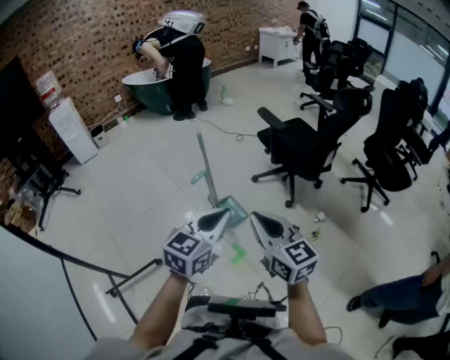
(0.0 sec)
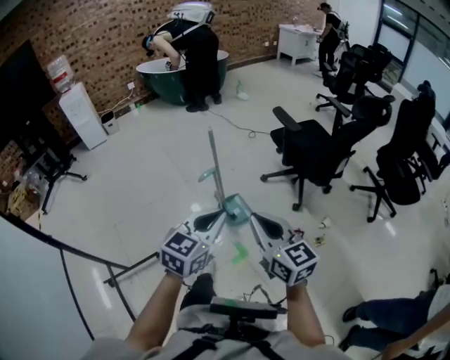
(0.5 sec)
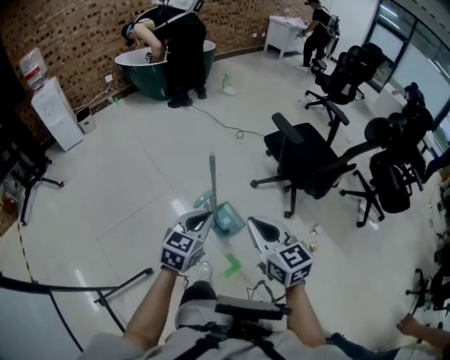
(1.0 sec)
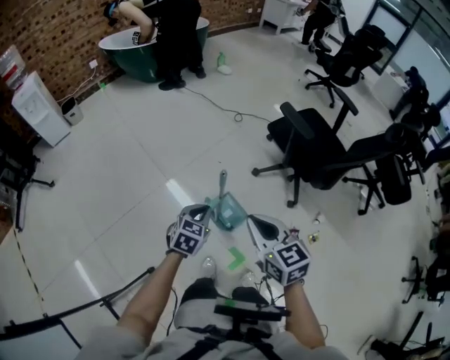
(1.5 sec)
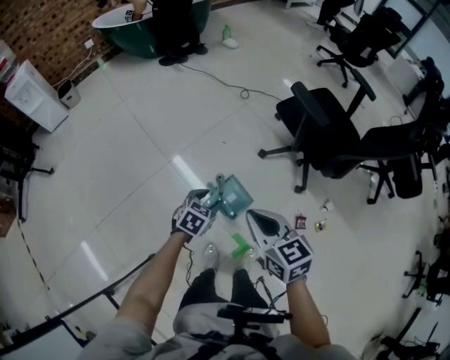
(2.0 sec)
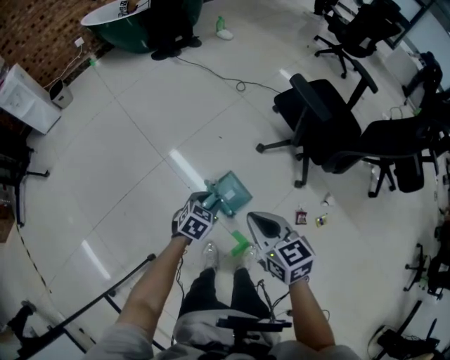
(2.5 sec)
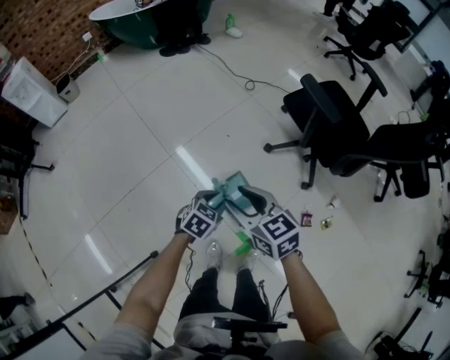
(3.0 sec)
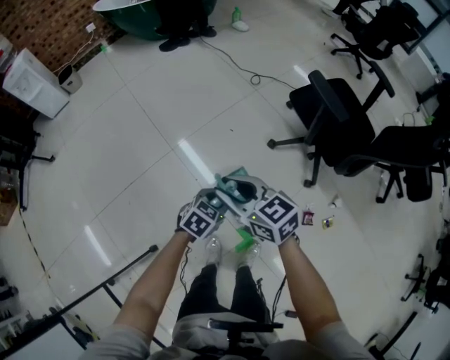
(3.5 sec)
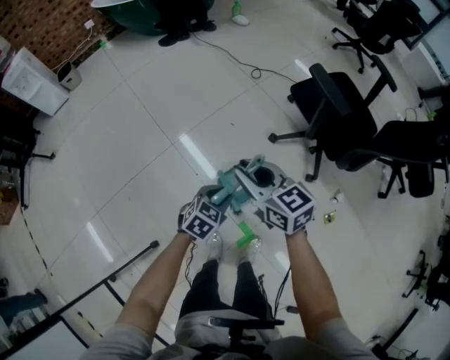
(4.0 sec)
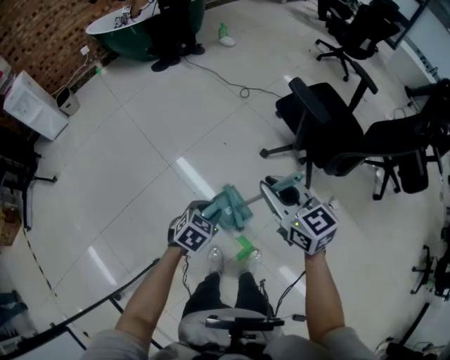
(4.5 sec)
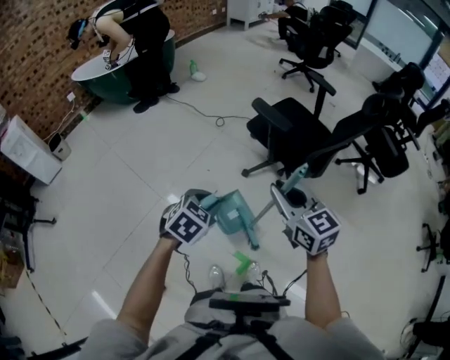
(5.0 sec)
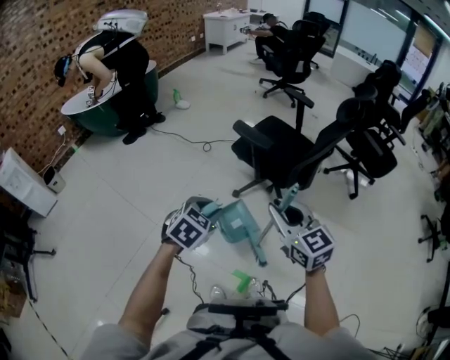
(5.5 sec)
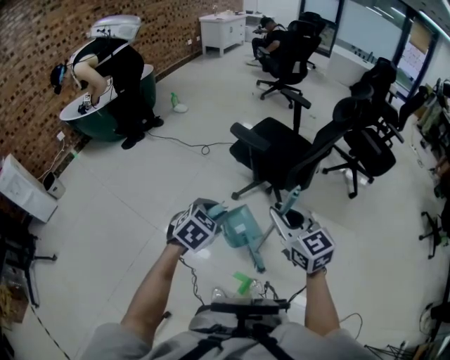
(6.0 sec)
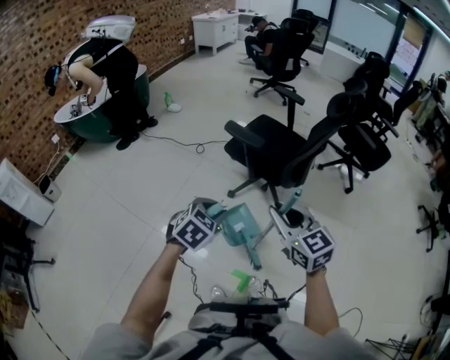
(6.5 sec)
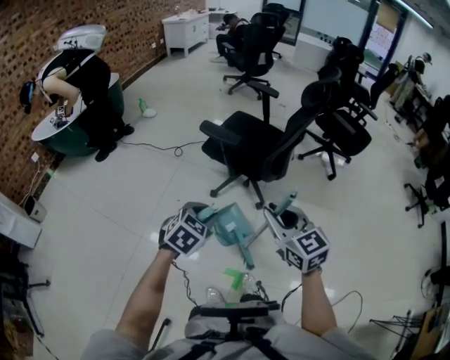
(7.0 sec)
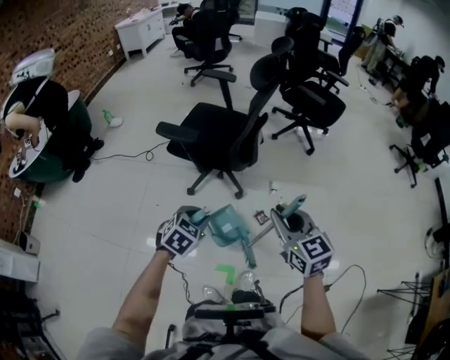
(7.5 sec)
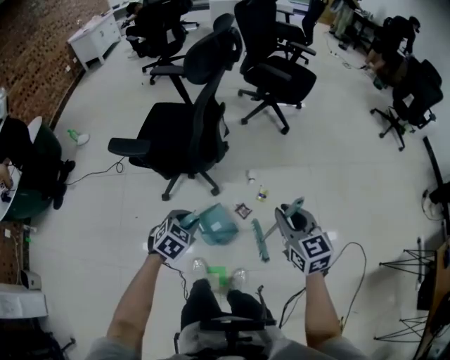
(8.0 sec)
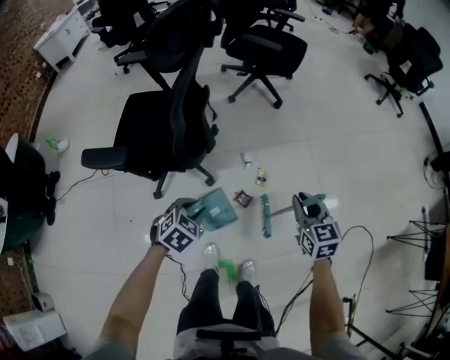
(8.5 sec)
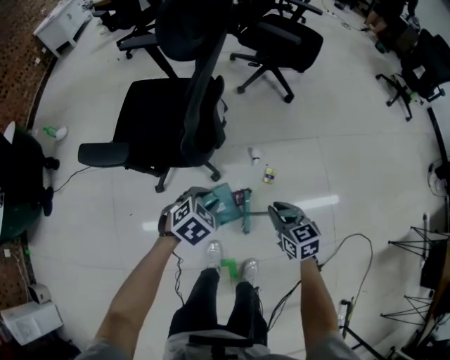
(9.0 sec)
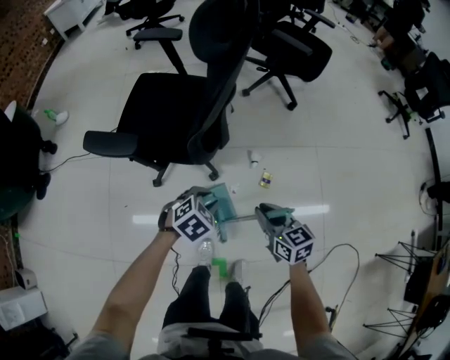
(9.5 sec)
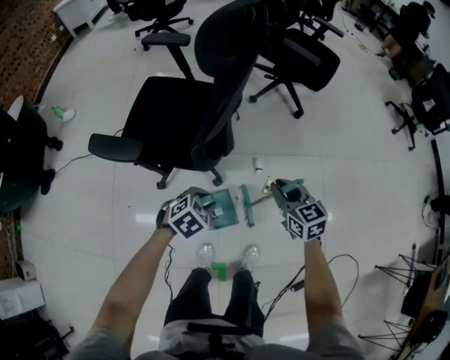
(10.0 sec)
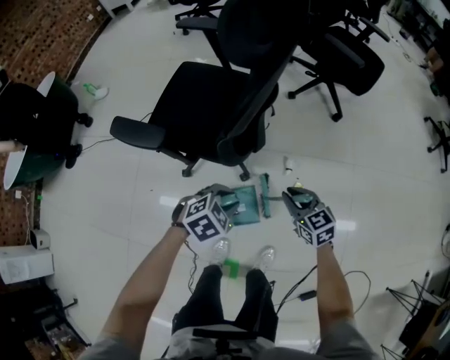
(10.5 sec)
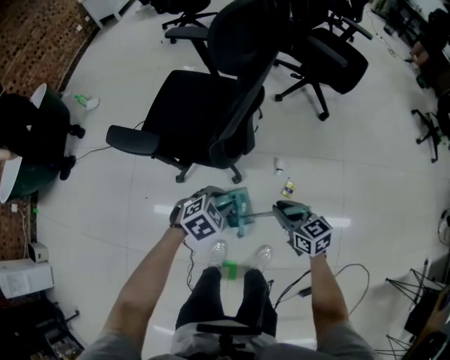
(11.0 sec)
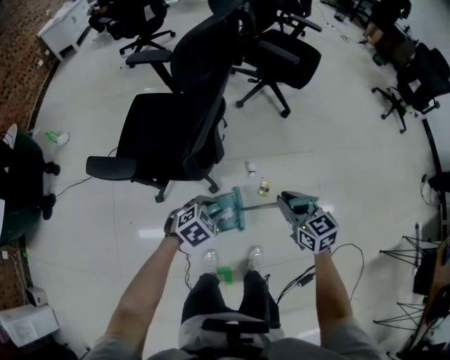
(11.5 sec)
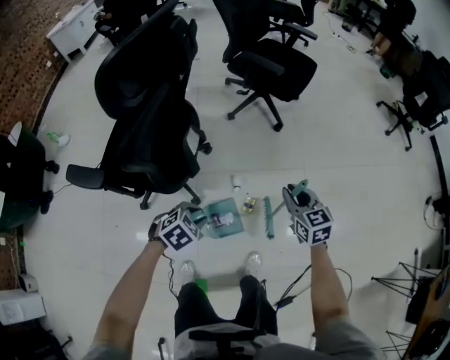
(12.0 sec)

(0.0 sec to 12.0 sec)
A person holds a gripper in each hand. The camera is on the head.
0.0 sec - 2.0 sec: Both grippers travel together forward and downward, approximately 40 cm. The right gripper rotates some 20 degrees. The left gripper angles its fingers downward, by roughly 40 degrees, and opens its fingers.
2.0 sec - 4.0 sec: The right gripper heads forward, covering some 10 cm, and opens its fingers.
4.0 sec - 6.0 sec: The right gripper is displaced to the right and upward by roughly 30 cm, and rotates about 40 degrees; the left gripper travels upward and to the right by some 25 cm, and swivels roughly 30 degrees.
6.0 sec - 8.0 sec: The right gripper ends up roughly 35 cm from where it was, and swivels roughly 40 degrees. Meanwhile the left gripper moves some 30 cm, and changes its angle by some 30 degrees.
8.0 sec - 10.0 sec: The left gripper moves forward and downward, some 15 cm, while the right gripper shifts about 25 cm forward, downward and to the left.
10.0 sec - 12.0 sec: The left gripper goes about 15 cm to the right. The right gripper shifts approximately 20 cm to the right.

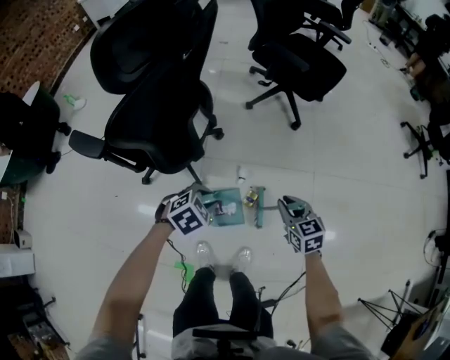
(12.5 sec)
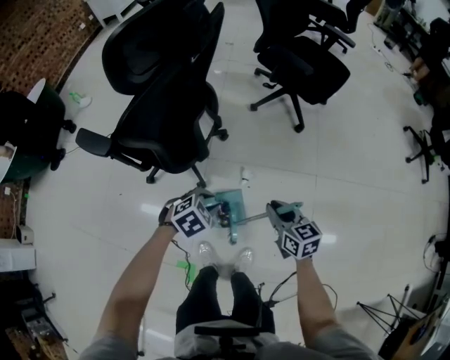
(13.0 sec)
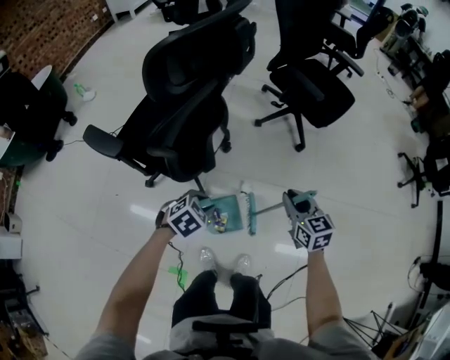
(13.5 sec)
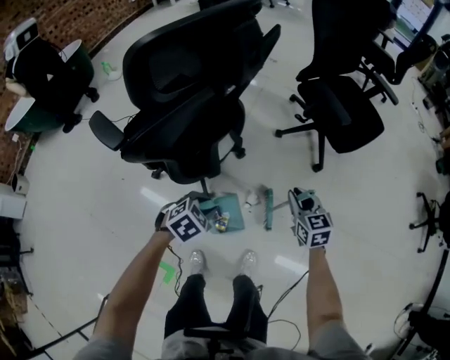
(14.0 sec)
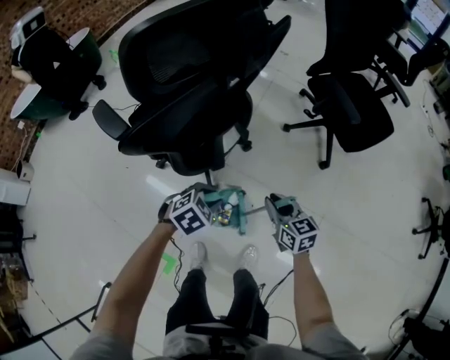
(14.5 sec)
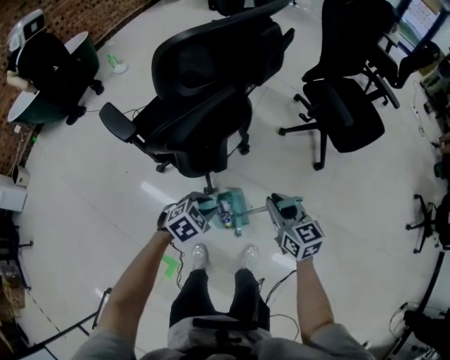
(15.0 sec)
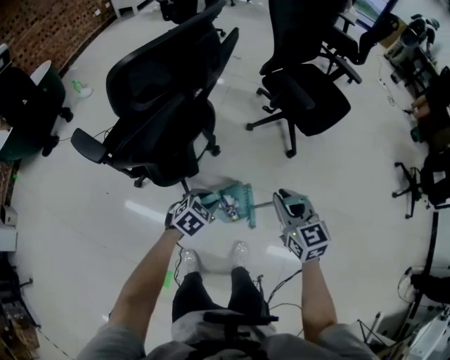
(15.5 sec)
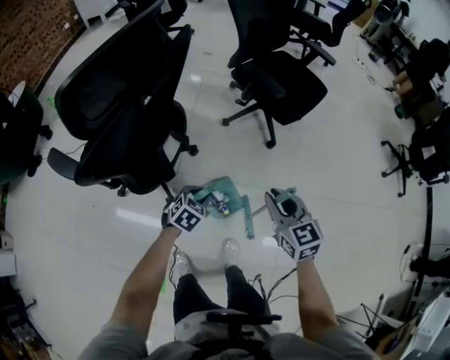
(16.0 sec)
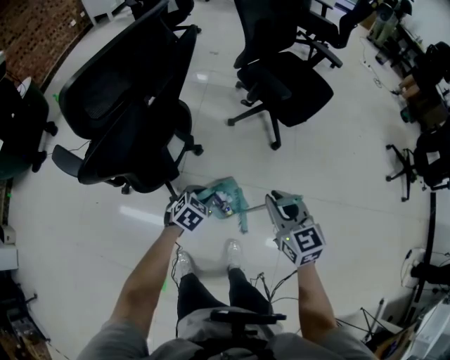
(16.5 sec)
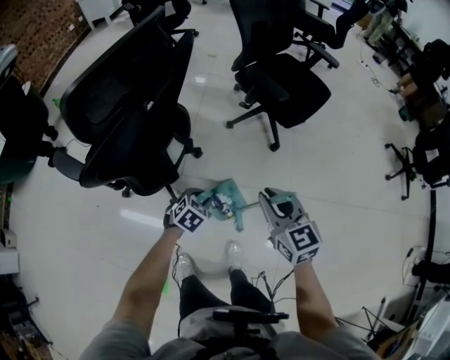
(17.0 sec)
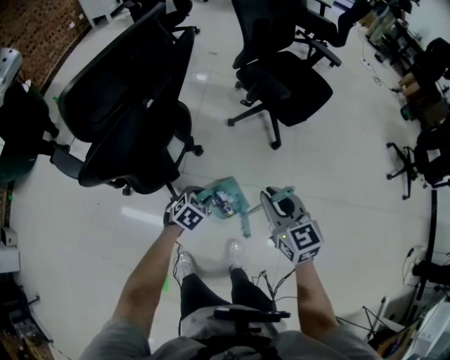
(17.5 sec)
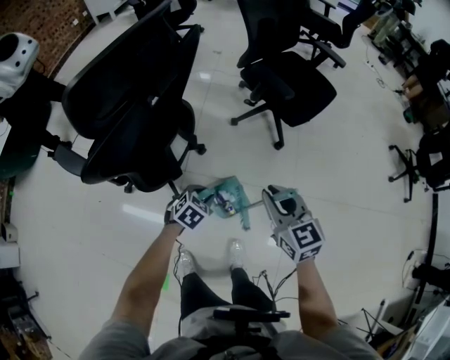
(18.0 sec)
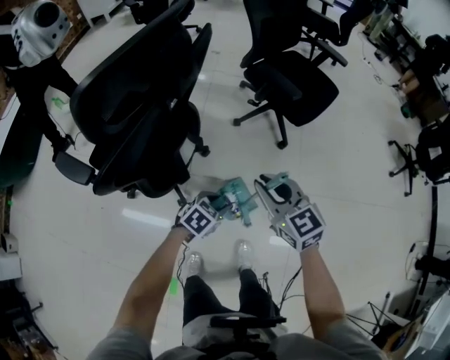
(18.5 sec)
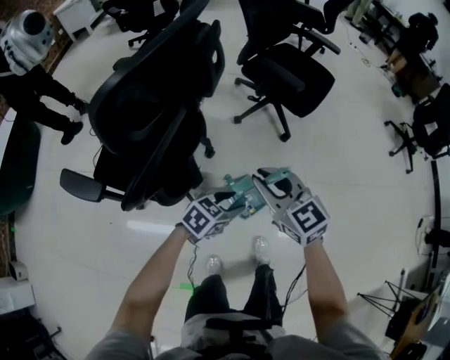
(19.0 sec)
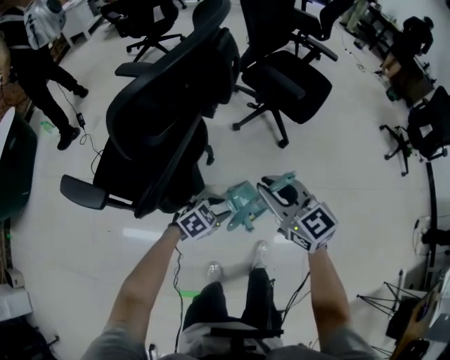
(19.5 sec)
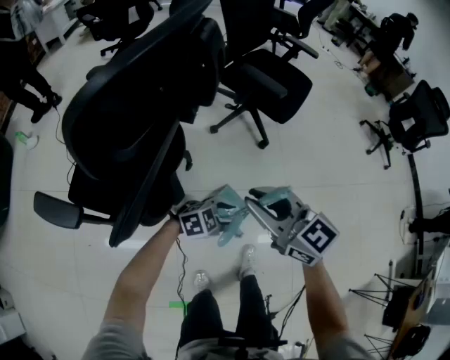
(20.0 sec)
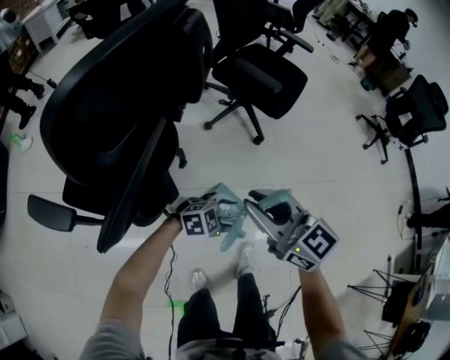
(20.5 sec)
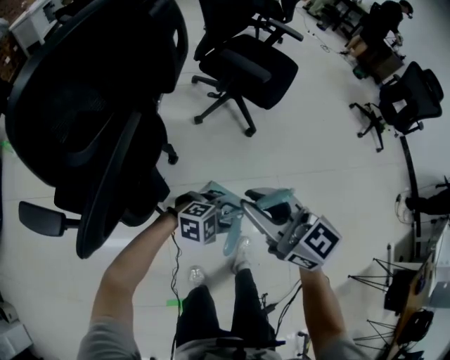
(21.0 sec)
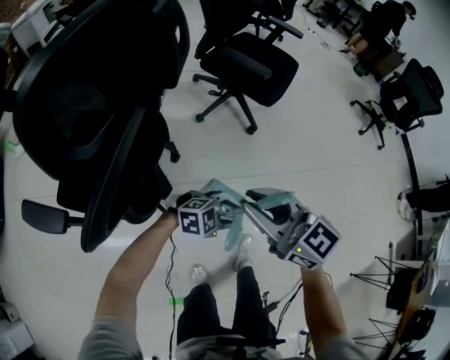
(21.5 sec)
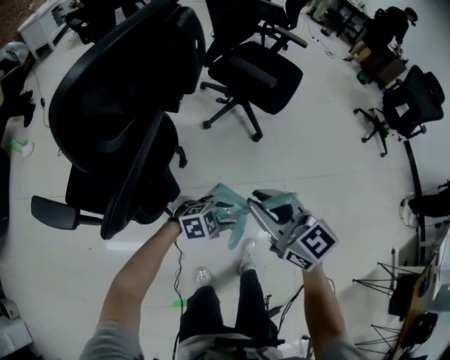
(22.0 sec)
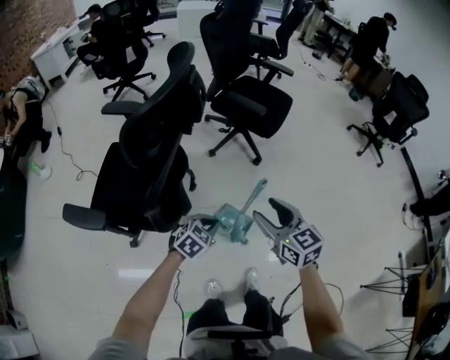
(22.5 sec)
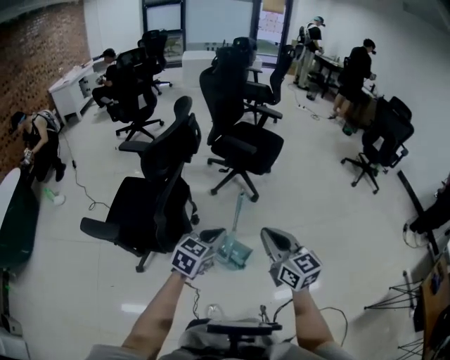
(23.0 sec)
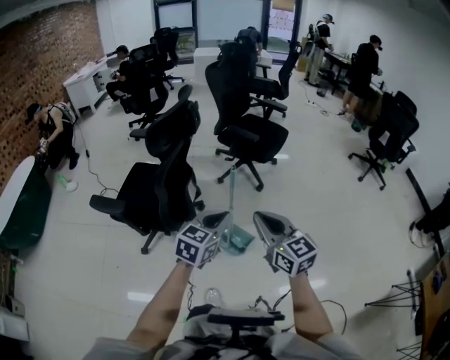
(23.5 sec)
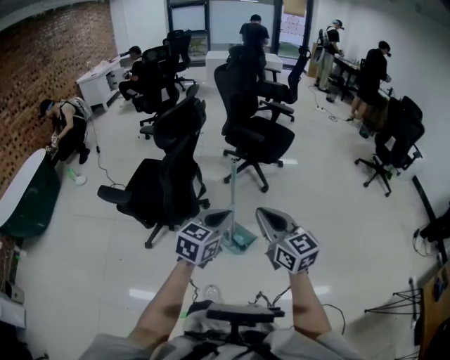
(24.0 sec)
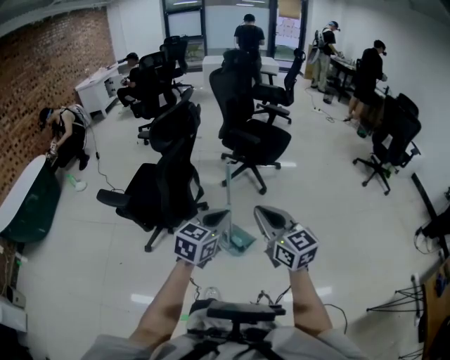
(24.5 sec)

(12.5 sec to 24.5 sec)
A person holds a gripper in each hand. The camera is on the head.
12.5 sec - 14.5 sec: The right gripper heads forward and to the left, covering roughly 15 cm, and turns by approximately 20 degrees. The left gripper travels forward by roughly 10 cm, and turns by roughly 20 degrees.
14.5 sec - 16.5 sec: The right gripper is displaced upward and to the right by about 20 cm, and turns by some 20 degrees. The left gripper goes about 10 cm to the right.
16.5 sec - 18.5 sec: The right gripper goes some 10 cm to the left.
18.5 sec - 20.5 sec: The left gripper swivels approximately 50 degrees, and opens its fingers. The right gripper ends up about 10 cm from where it was.
20.5 sec - 22.5 sec: The right gripper shifts by some 10 cm, swivels roughly 20 degrees, and opens its fingers, while the left gripper moves about 15 cm, rotates some 30 degrees, and closes up.
22.5 sec - 24.5 sec: The right gripper travels backward, upward and to the right by about 25 cm, and closes its fingers, while the left gripper moves upward, backward and to the right, some 35 cm, and rotates about 30 degrees.

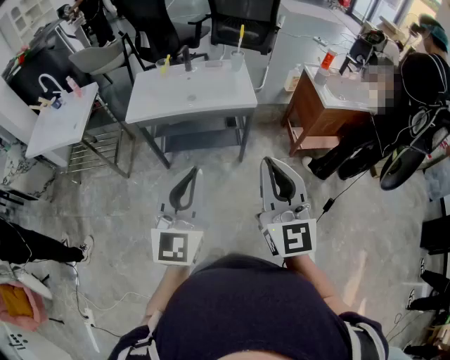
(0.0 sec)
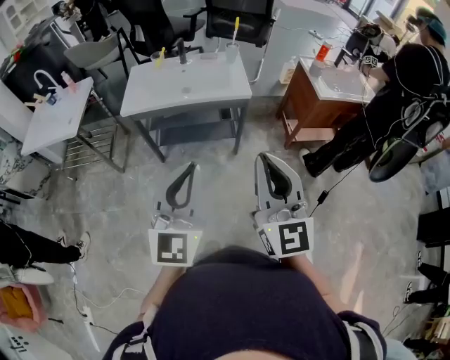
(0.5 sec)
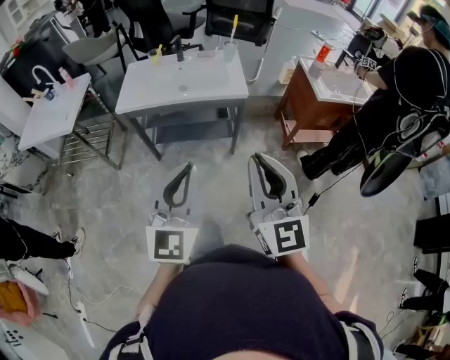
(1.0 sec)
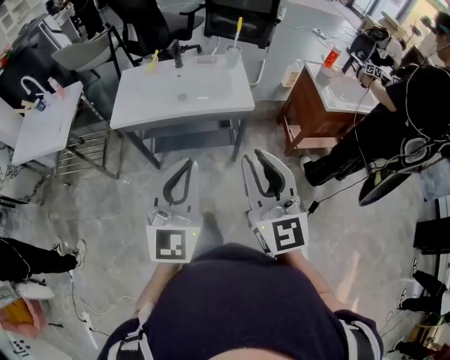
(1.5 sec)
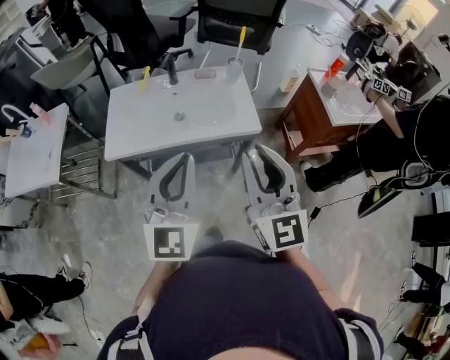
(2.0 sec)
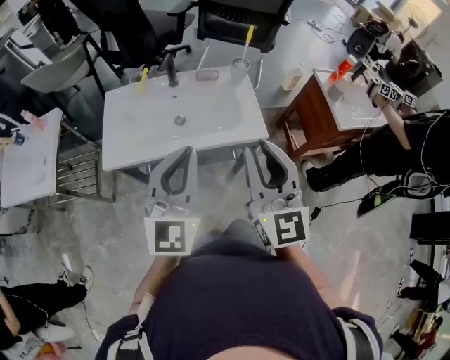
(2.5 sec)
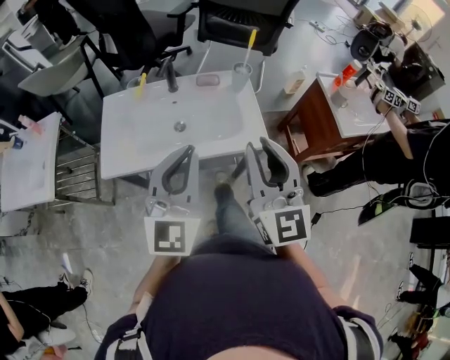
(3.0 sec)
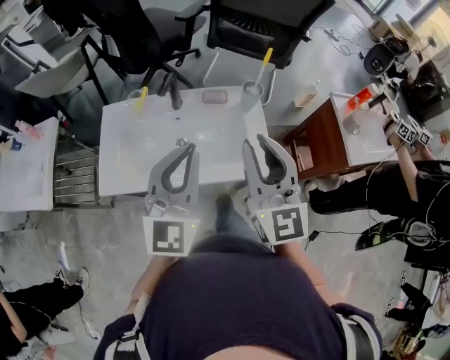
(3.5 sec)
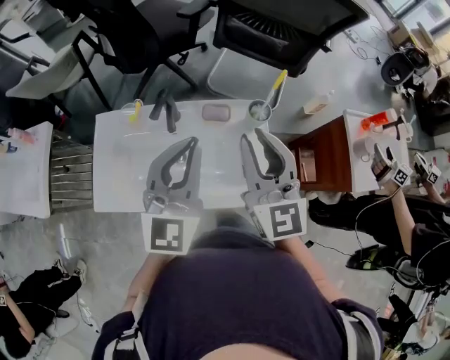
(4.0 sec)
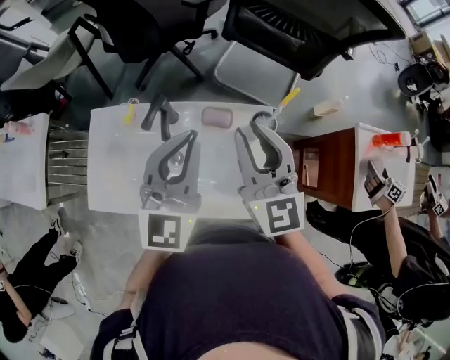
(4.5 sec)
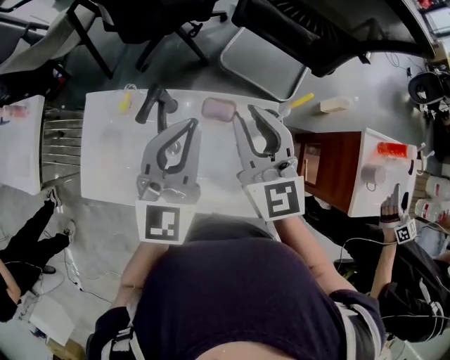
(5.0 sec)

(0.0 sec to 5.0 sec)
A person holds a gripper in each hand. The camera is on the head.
0.0 sec - 2.5 sec: Both grippers travel together forward, about 35 cm.
2.5 sec - 5.0 sec: Both grippers travel together forward, about 40 cm. The right gripper changes its angle by roughly 20 degrees.
